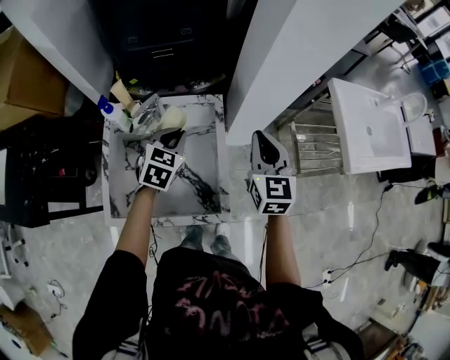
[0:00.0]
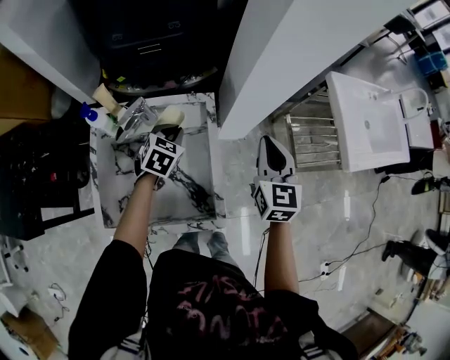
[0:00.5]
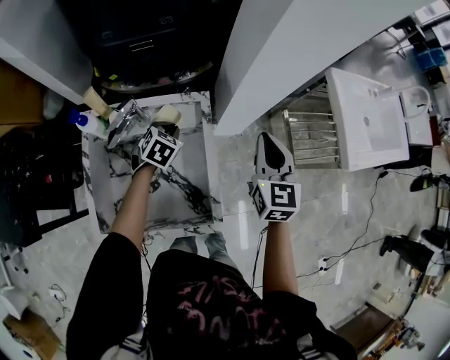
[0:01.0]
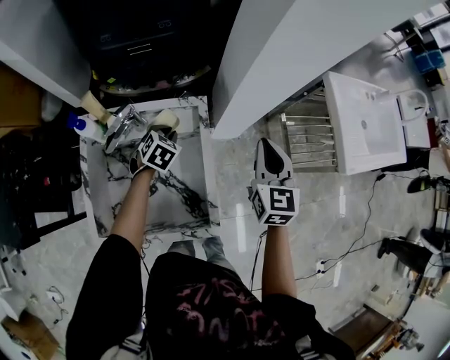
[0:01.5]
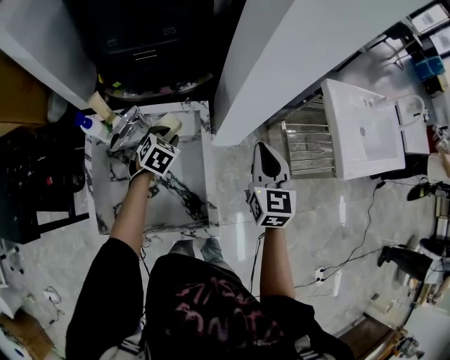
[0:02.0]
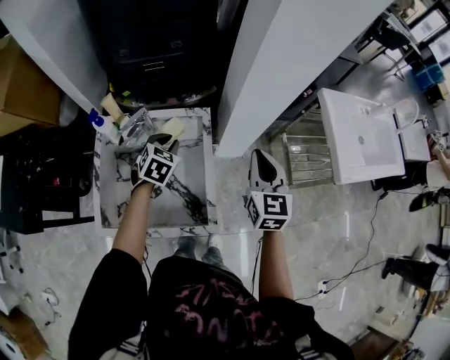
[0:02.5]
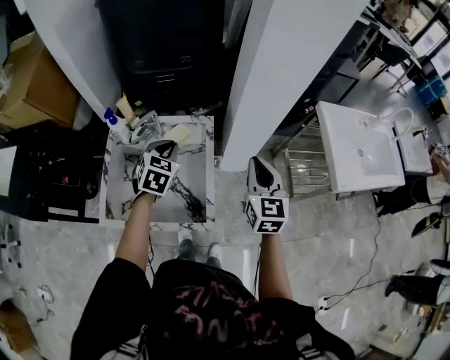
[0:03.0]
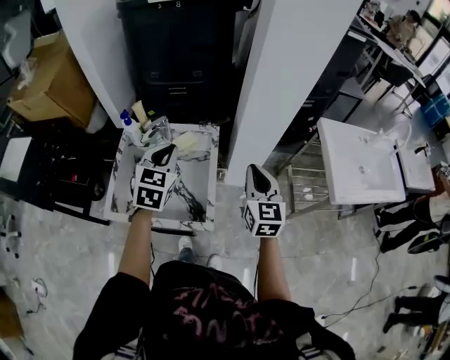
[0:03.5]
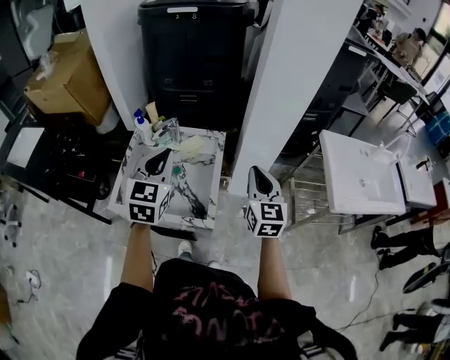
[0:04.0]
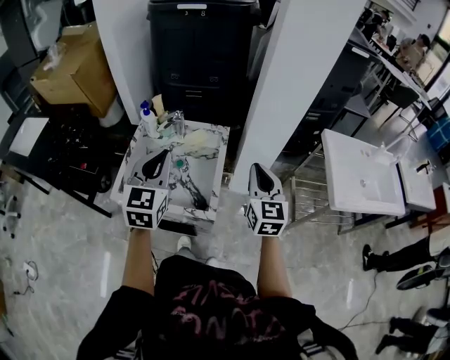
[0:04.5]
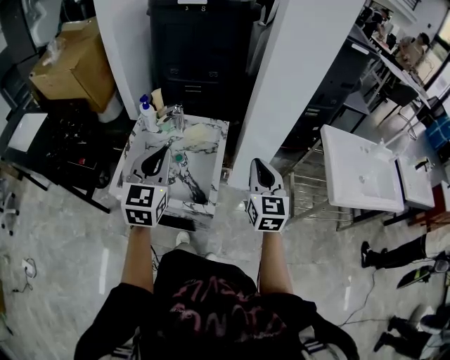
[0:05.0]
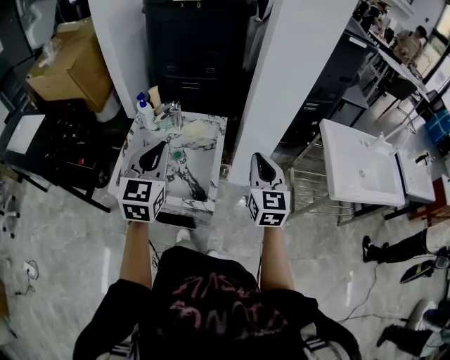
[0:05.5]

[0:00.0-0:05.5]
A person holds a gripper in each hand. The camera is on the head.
0.0 to 2.0 s: The left gripper is displaced downward and forward by roughly 10 cm, and opens up; the right gripper moves roughly 5 cm.
2.0 to 3.5 s: The right gripper is displaced backward and upward by about 10 cm, while the left gripper shifts roughly 30 cm upward and backward, changes its angle by roughly 30 degrees, and closes its fingers.
3.5 to 5.5 s: The right gripper shifts some 5 cm backward. The left gripper shifts roughly 15 cm backward and upward.

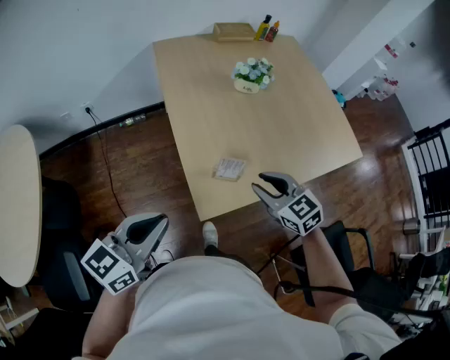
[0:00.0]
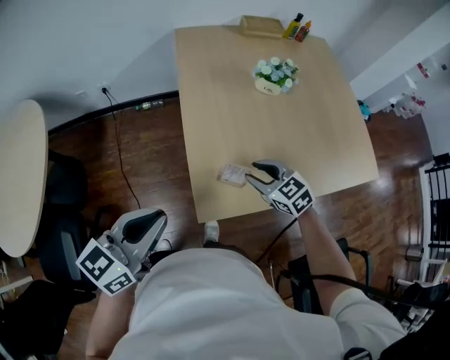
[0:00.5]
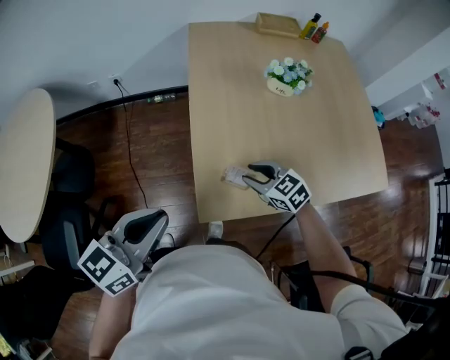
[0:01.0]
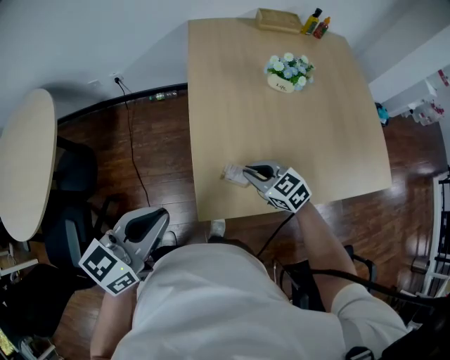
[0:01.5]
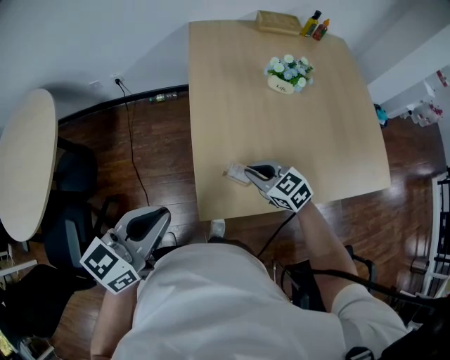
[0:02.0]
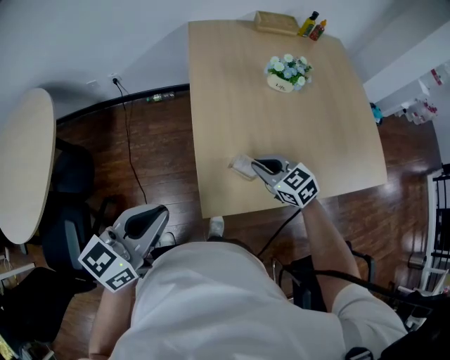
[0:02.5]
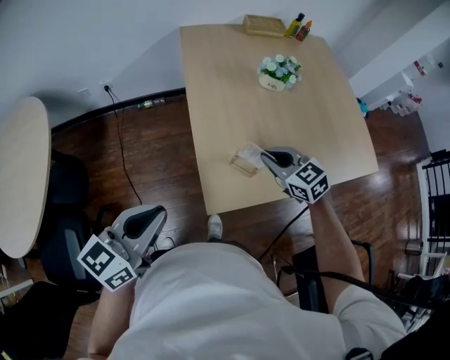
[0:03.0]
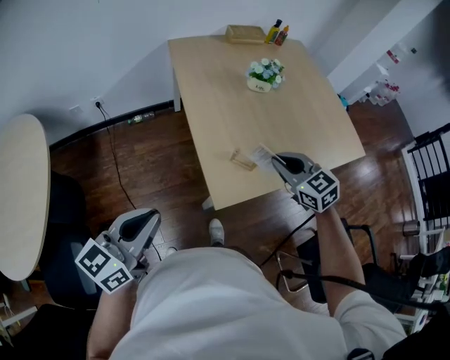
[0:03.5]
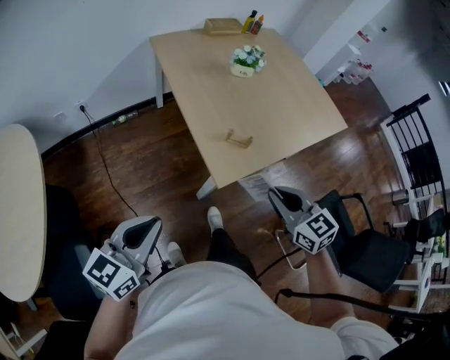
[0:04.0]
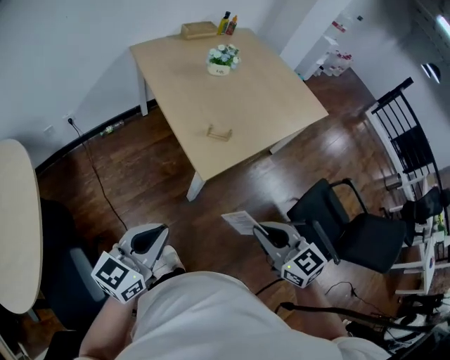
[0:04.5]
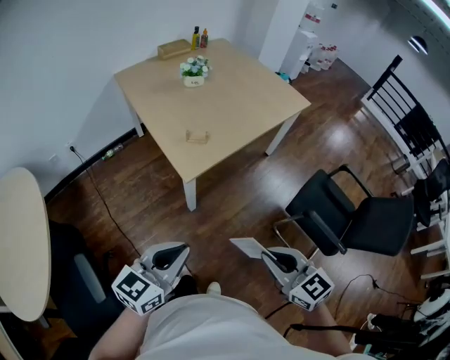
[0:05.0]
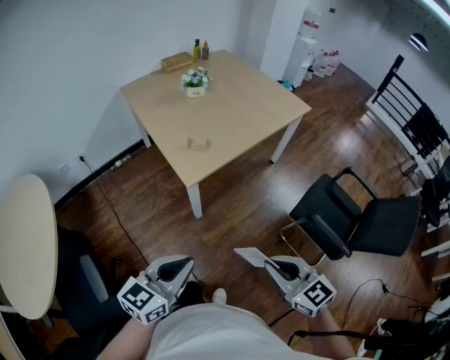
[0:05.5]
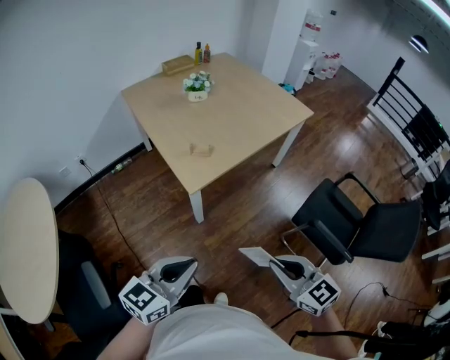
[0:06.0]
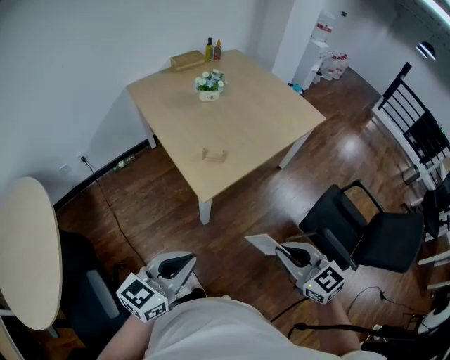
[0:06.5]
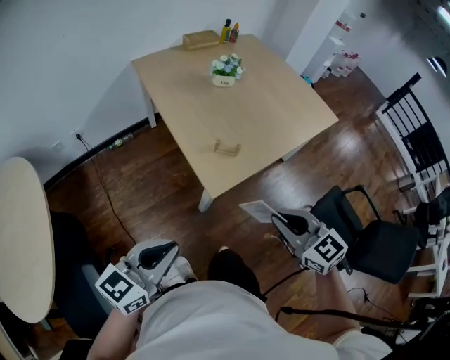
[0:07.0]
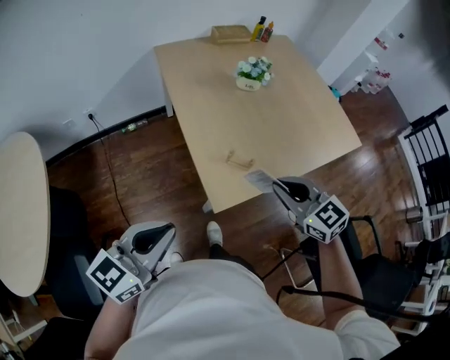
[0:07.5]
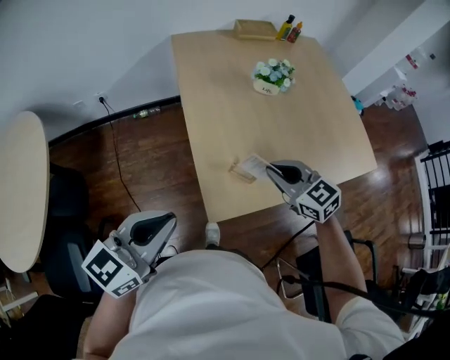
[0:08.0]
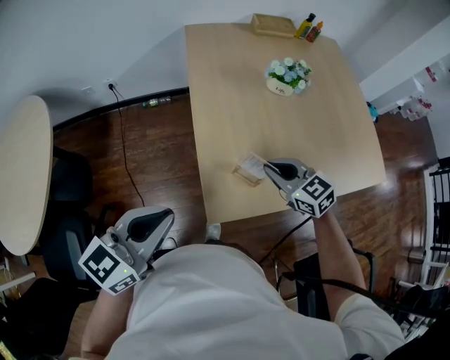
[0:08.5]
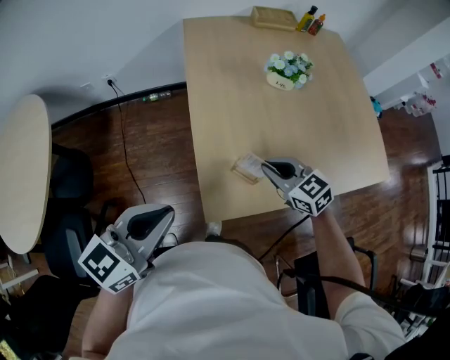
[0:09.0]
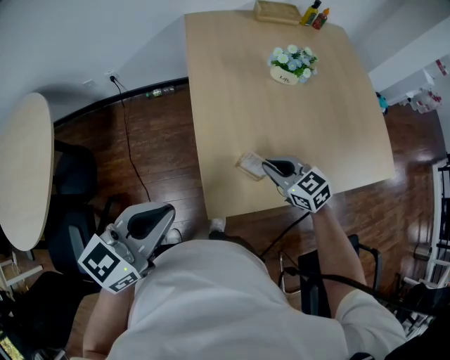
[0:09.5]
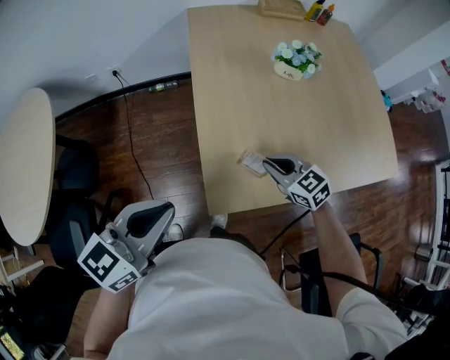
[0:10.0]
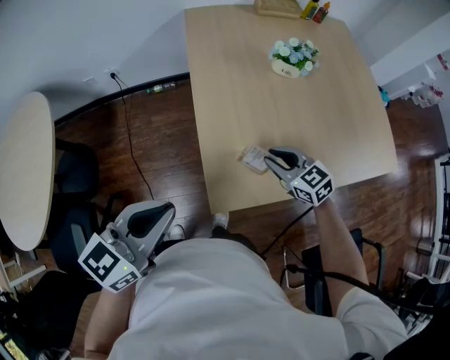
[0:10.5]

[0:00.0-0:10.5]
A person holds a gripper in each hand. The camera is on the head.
0.0 to 2.0 s: The left gripper changes place by roughly 5 cm. The right gripper travels downward and forward by approximately 15 cm, turns by about 20 degrees, and closes up.
2.0 to 4.0 s: The right gripper ends up approximately 30 cm from where it was, and turns by roughly 40 degrees. The left gripper moves roughly 20 cm.
4.0 to 6.5 s: The left gripper goes about 15 cm to the right and backward, while the right gripper goes approximately 20 cm backward and to the right.
6.5 to 8.5 s: The left gripper shifts by about 25 cm, and changes its angle by approximately 30 degrees. The right gripper ends up approximately 50 cm from where it was, and rotates some 40 degrees.
8.5 to 10.5 s: The right gripper travels downward by approximately 5 cm.

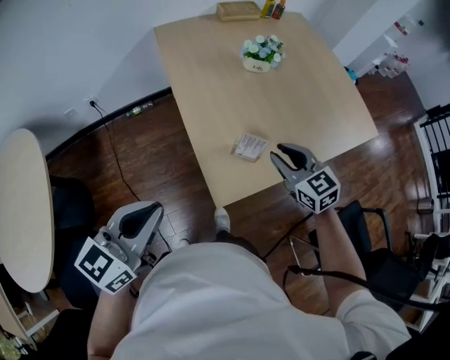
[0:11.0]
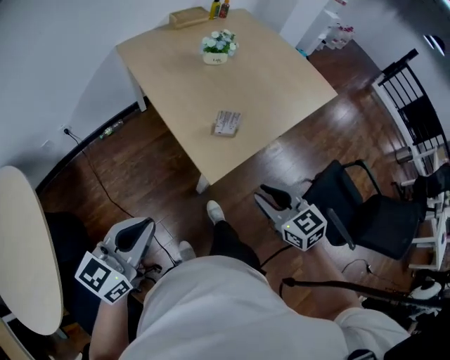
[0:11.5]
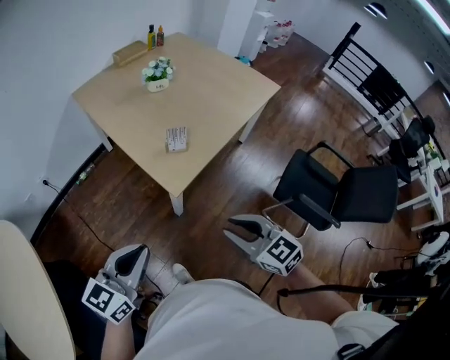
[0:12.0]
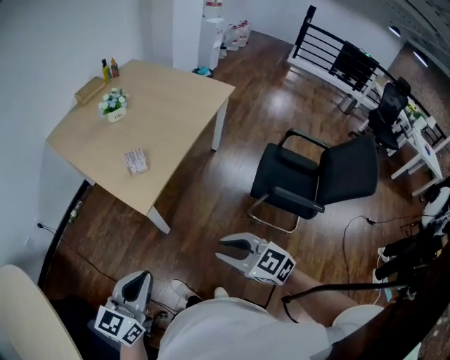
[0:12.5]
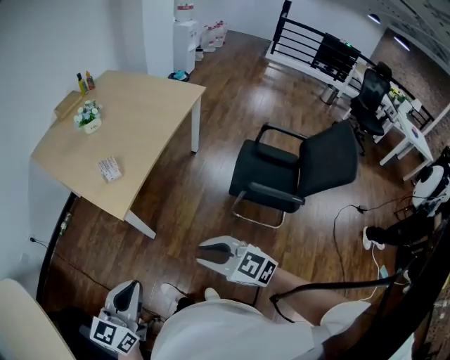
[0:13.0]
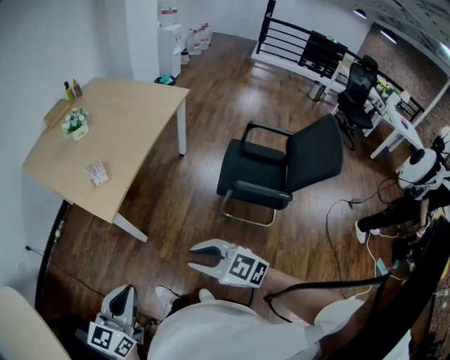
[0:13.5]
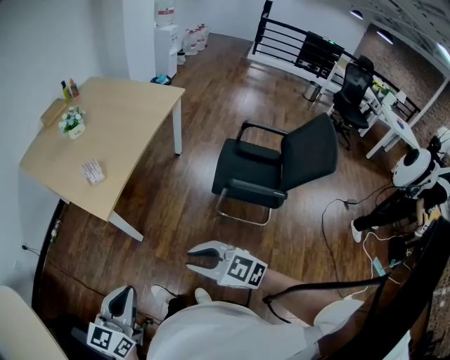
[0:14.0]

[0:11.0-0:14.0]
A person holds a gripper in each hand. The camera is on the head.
11.0 to 12.5 s: The right gripper travels backward by approximately 40 cm; the left gripper goes some 25 cm backward and to the right, and swivels about 30 degrees.
12.5 to 14.0 s: Both grippers move backward and to the right, about 10 cm.

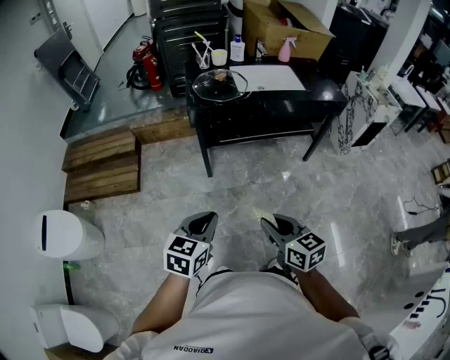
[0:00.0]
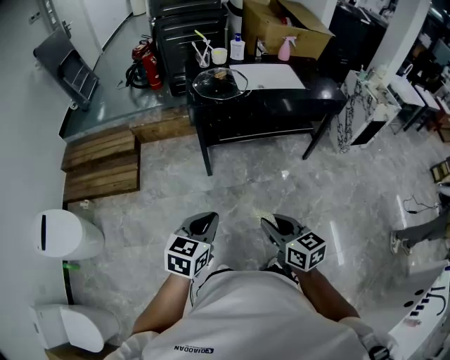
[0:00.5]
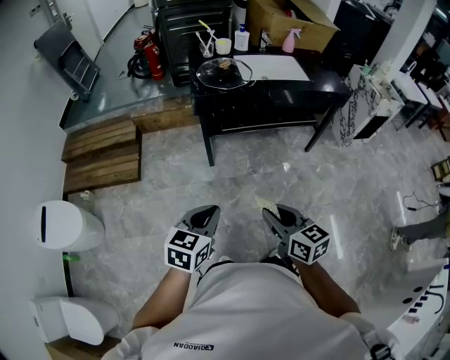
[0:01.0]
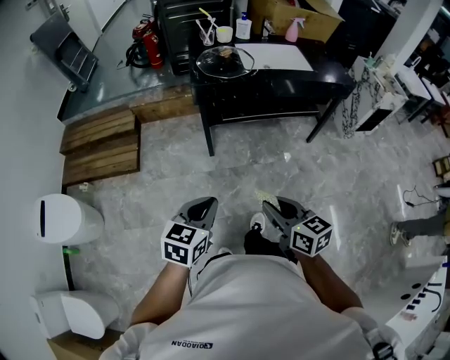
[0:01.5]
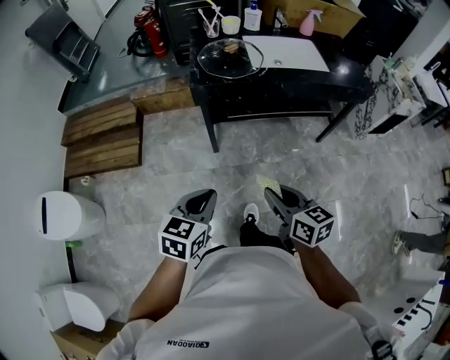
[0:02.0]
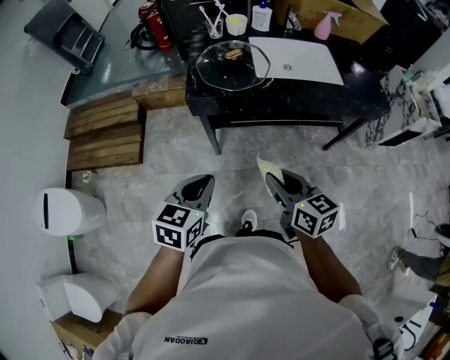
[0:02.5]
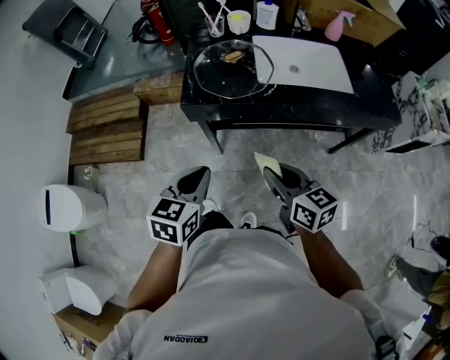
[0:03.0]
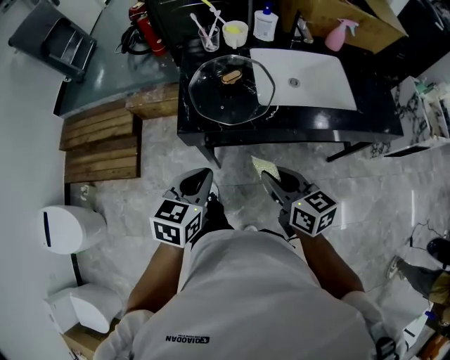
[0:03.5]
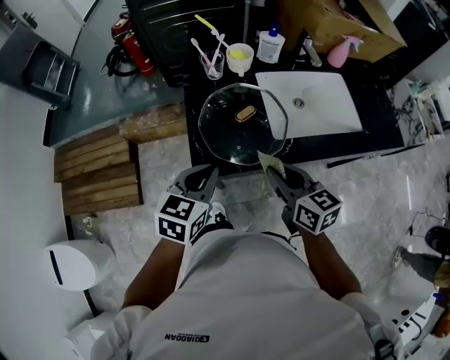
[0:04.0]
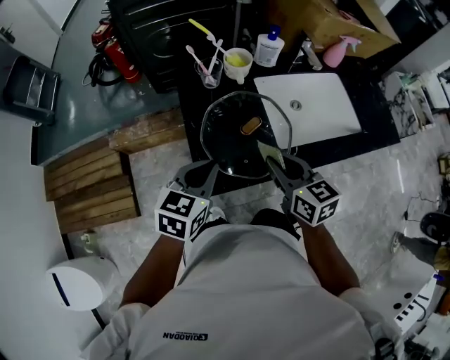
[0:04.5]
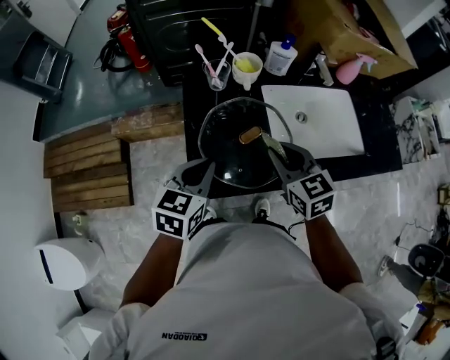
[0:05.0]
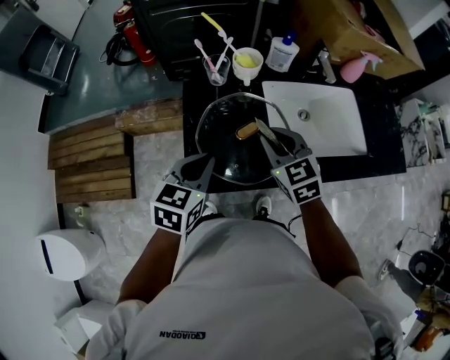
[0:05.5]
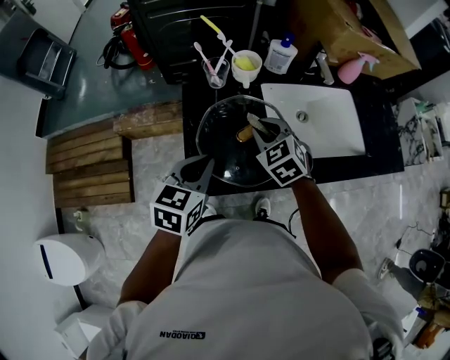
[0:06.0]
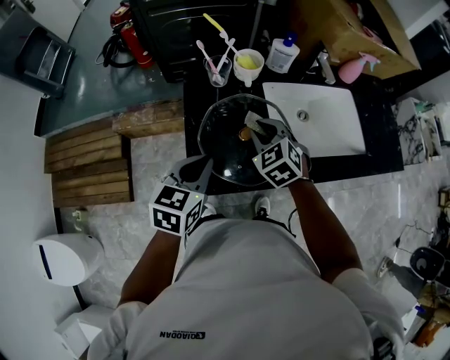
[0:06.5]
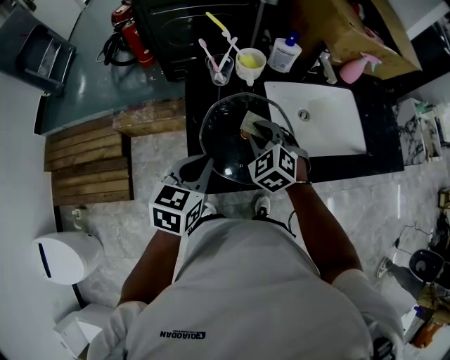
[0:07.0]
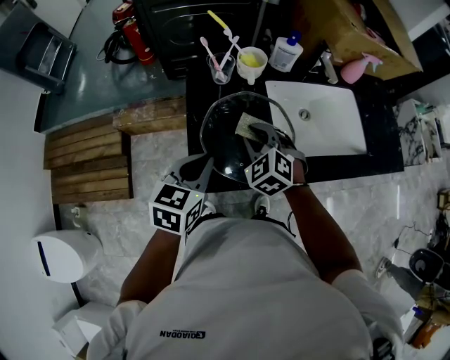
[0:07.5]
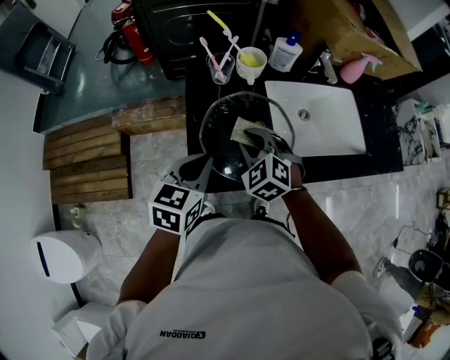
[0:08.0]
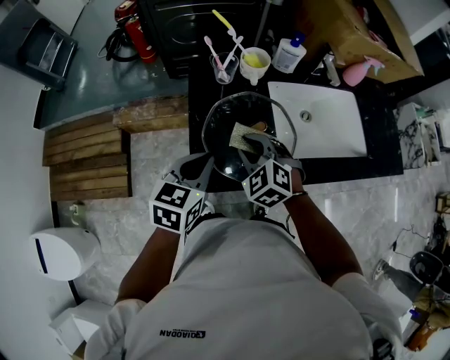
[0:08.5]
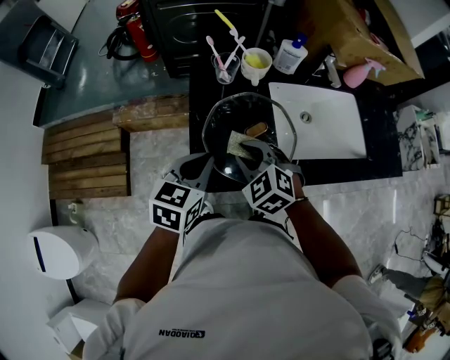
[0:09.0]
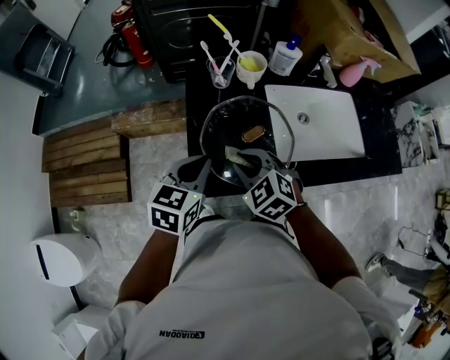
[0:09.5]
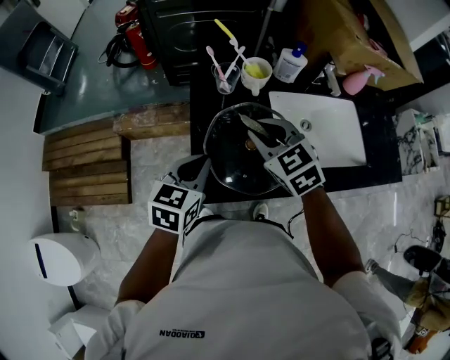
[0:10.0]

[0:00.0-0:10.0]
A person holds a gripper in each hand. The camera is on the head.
0.0 to 2.0 s: The two grippers go about 15 cm forward.
2.0 to 4.0 s: The two grippers travel together, forward, some 50 cm.
4.0 to 6.0 s: The left gripper travels forward by about 10 cm. The right gripper goes roughly 20 cm forward, and rolls counterclockwise, seen from behind, by approximately 40 degrees.
6.0 to 8.0 s: The right gripper changes place by roughly 5 cm.
8.0 to 10.0 s: The right gripper is displaced upward by roughly 10 cm, and swivels roughly 20 degrees.
